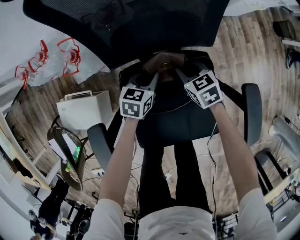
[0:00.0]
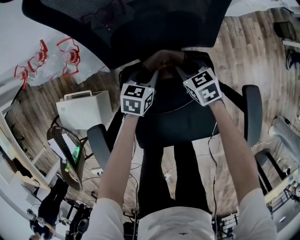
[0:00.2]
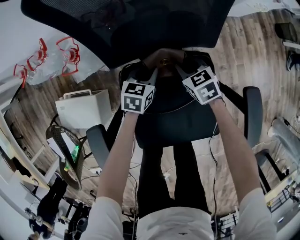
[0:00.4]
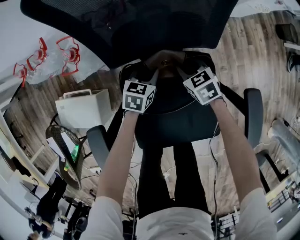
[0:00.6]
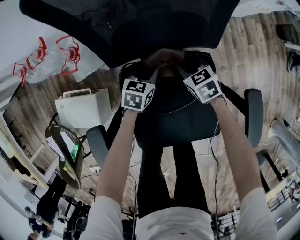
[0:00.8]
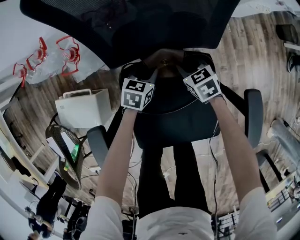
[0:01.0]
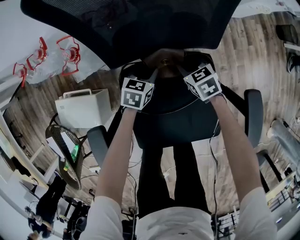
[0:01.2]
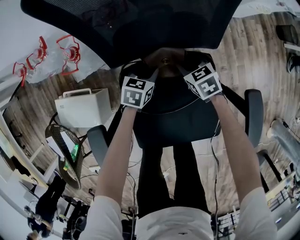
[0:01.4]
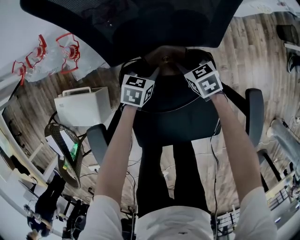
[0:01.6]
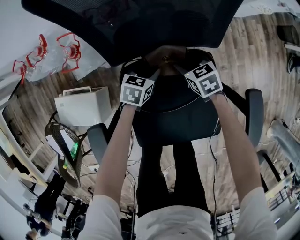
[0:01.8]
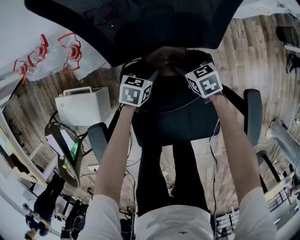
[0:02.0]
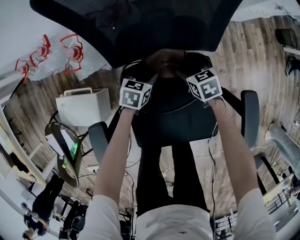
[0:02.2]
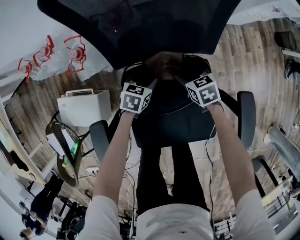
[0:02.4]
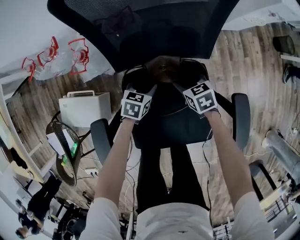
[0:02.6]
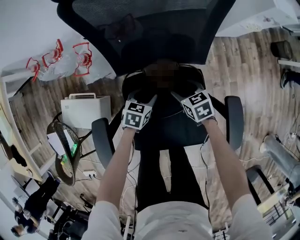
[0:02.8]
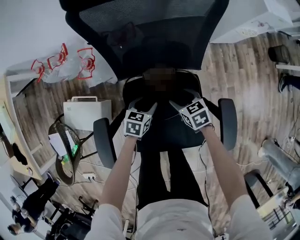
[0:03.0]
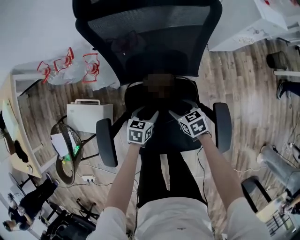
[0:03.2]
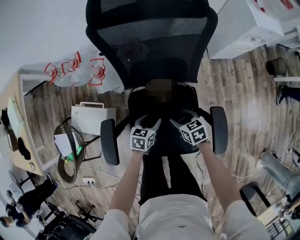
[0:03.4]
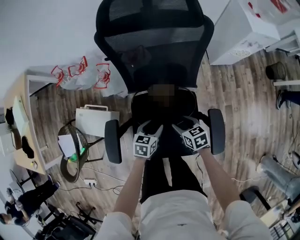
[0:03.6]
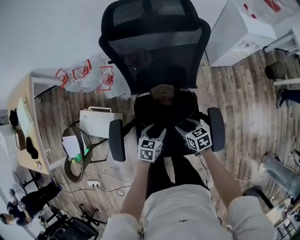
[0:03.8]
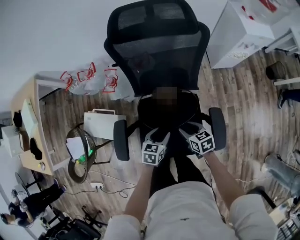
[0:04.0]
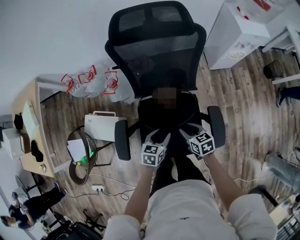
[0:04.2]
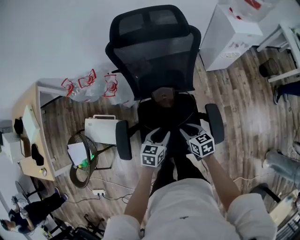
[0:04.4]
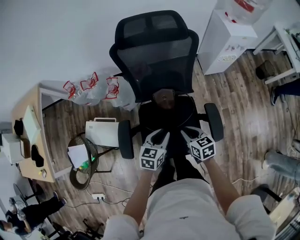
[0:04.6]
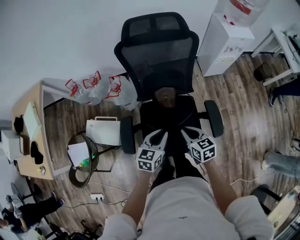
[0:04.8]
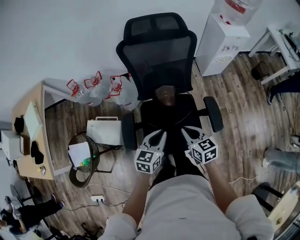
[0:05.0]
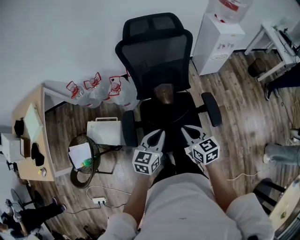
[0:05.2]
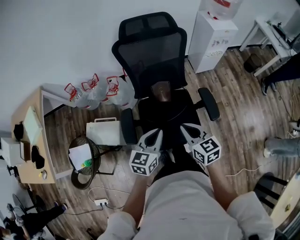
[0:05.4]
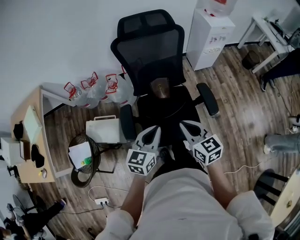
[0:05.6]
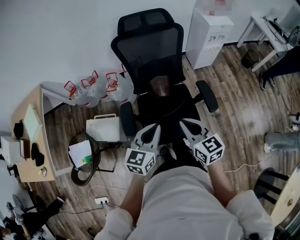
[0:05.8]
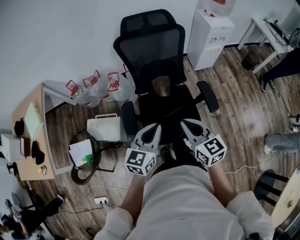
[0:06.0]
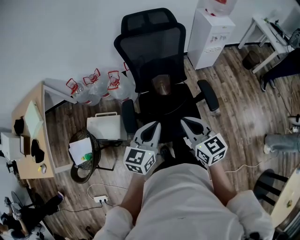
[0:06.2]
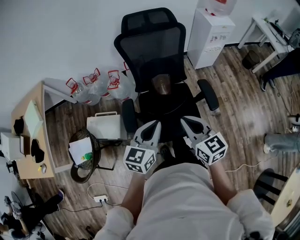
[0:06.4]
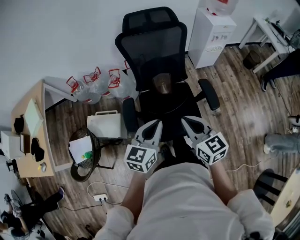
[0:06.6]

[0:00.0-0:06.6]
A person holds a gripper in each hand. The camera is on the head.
0:00.0 to 0:01.6: There are only small adjustments of the grippers.
0:01.6 to 0:03.2: The left gripper moves upward and backward, roughly 15 cm; the right gripper shifts roughly 15 cm backward and upward, and opens its fingers.
0:03.2 to 0:05.0: The grippers both shift upward and backward by approximately 30 cm. The right gripper swivels about 20 degrees, and closes. The left gripper swivels some 30 degrees, and closes up.
0:05.0 to 0:06.6: The two grippers go roughly 15 cm upward and backward.

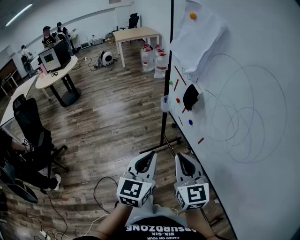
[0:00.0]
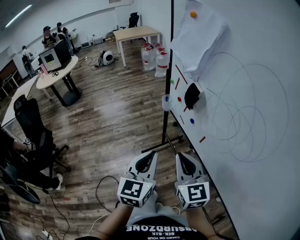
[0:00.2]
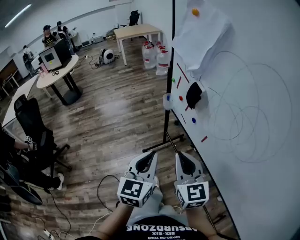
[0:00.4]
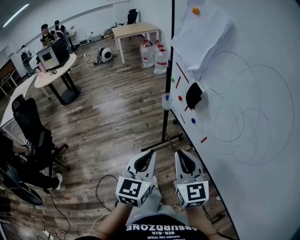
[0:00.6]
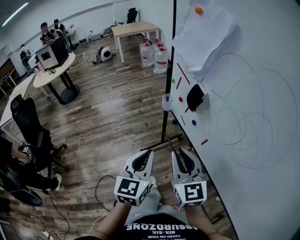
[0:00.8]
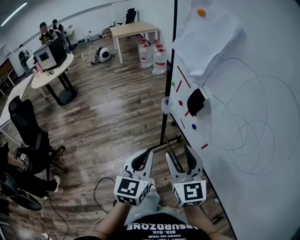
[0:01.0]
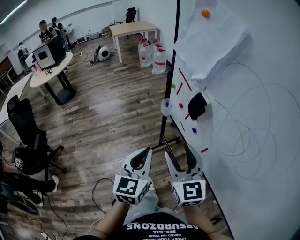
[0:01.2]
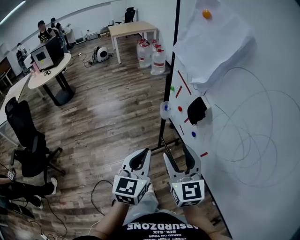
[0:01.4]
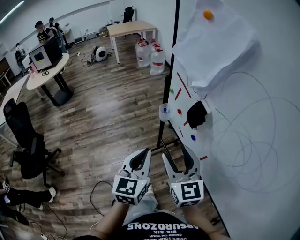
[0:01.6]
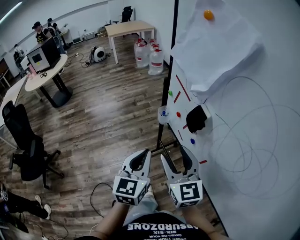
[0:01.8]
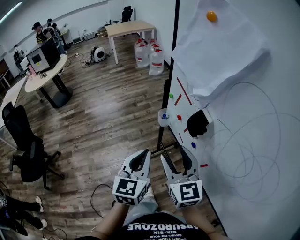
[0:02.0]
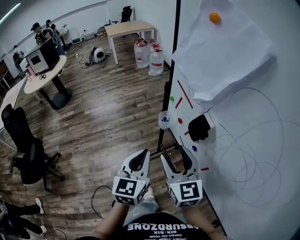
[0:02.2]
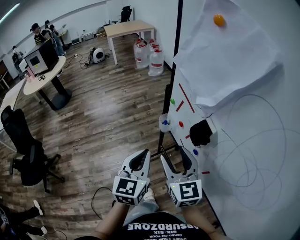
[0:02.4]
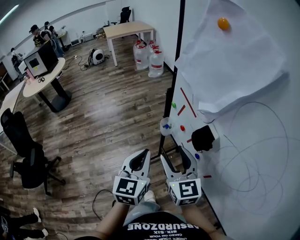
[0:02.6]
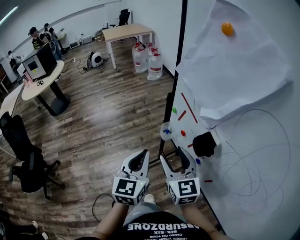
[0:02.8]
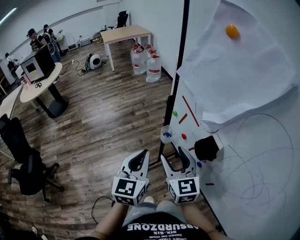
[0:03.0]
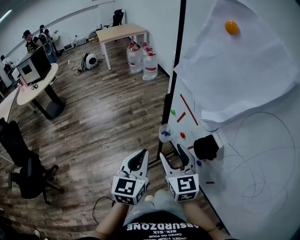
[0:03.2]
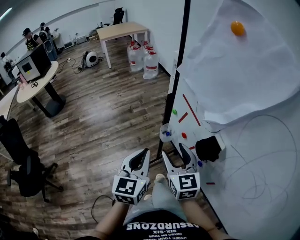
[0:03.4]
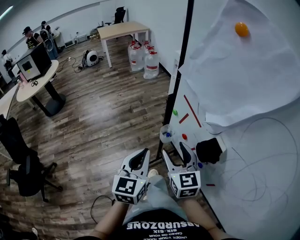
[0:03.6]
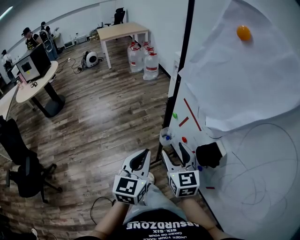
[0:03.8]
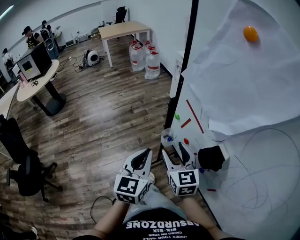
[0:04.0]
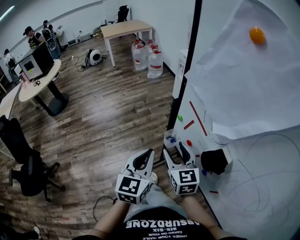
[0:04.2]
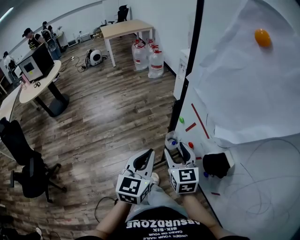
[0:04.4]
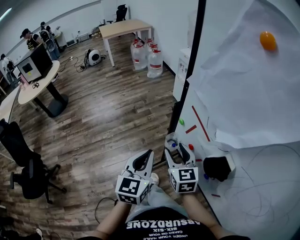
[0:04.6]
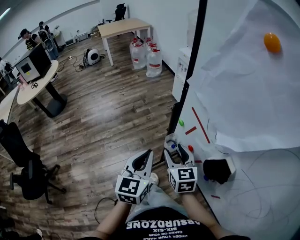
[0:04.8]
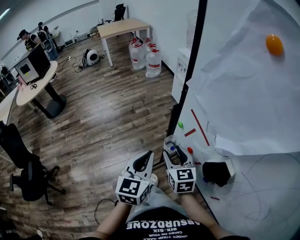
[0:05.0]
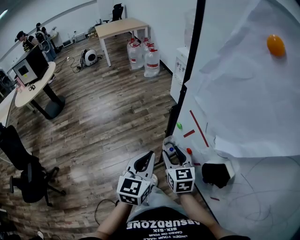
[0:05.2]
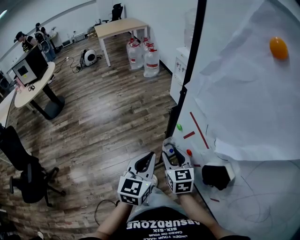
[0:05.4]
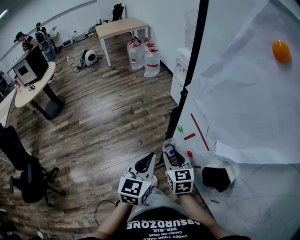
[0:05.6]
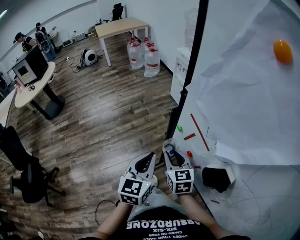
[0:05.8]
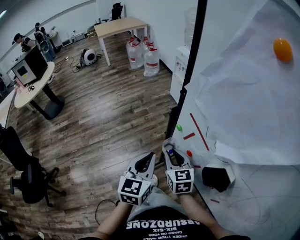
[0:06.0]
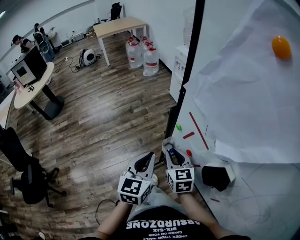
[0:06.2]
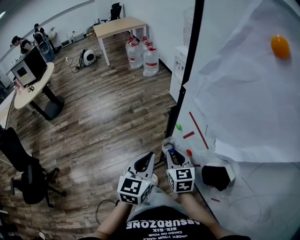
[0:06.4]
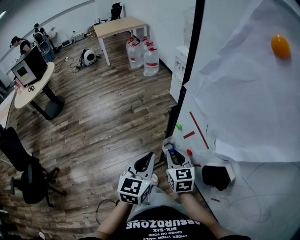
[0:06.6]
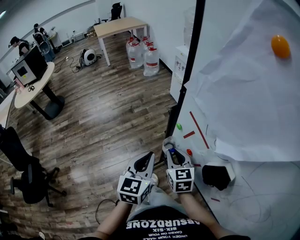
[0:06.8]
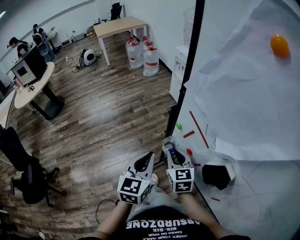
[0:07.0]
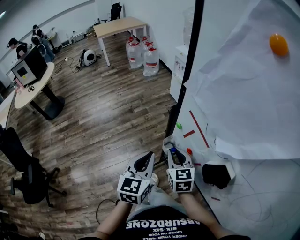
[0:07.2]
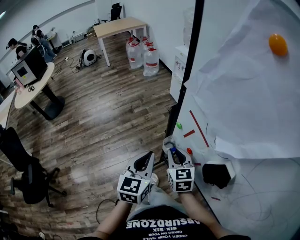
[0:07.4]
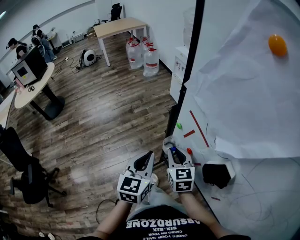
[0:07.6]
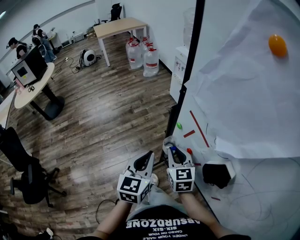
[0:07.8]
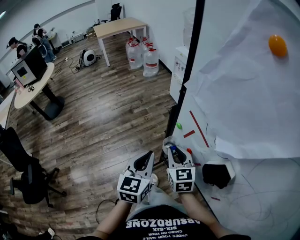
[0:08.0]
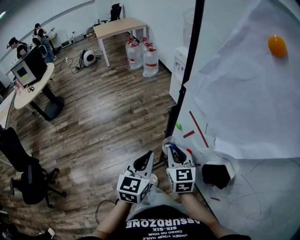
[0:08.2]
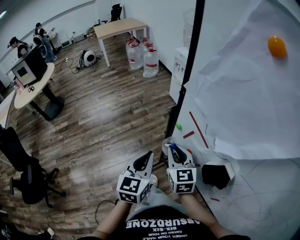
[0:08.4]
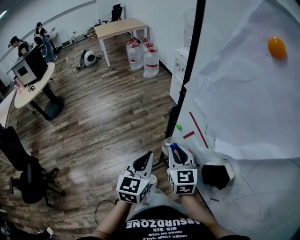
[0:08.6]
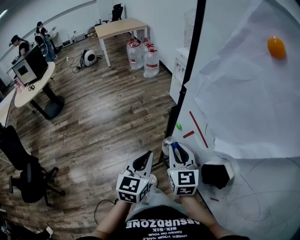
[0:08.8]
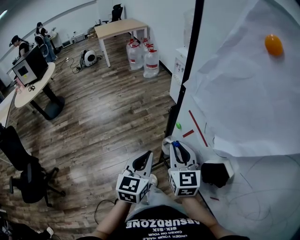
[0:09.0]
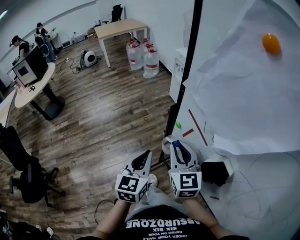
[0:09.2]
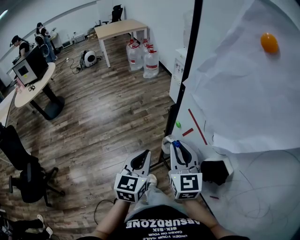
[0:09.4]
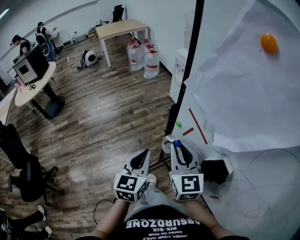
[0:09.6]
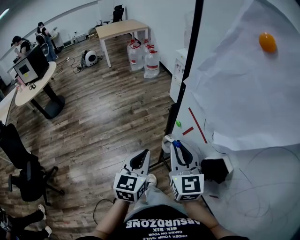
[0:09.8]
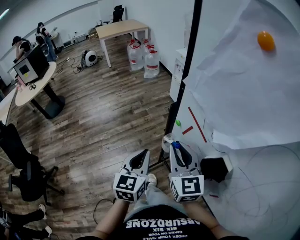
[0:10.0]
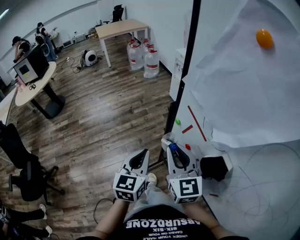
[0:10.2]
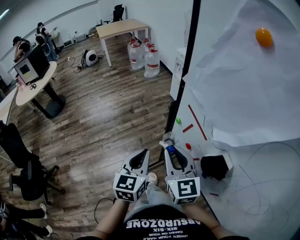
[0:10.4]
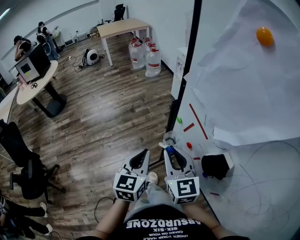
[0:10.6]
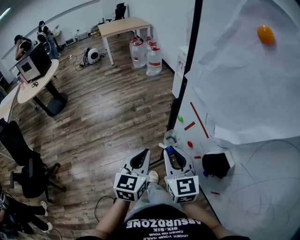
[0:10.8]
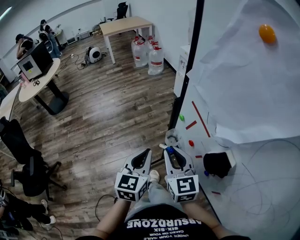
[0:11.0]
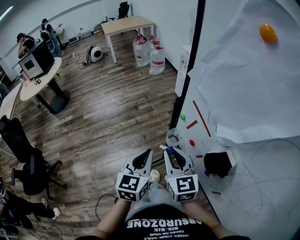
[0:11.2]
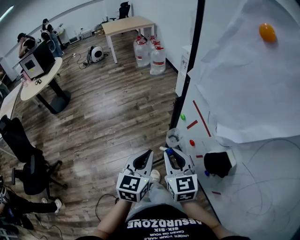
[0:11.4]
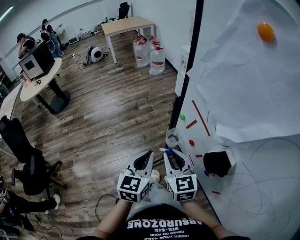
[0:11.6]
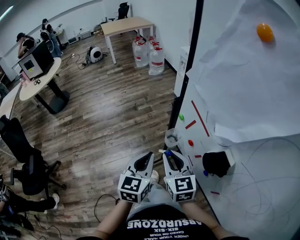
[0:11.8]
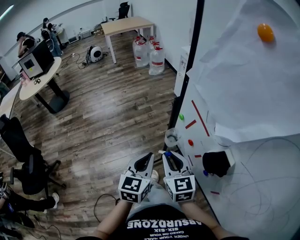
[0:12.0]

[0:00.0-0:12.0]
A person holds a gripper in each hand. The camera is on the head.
0:00.0 to 0:01.6: The grippers both shift forward by roughly 15 cm. The right gripper opens its fingers.
0:01.6 to 0:03.0: Both grippers travel together forward, approximately 15 cm.
0:03.0 to 0:04.4: The left gripper heads forward, covering about 5 cm. Meanwhile the right gripper moves forward and downward, some 10 cm.
0:04.4 to 0:06.0: The left gripper moves roughly 5 cm. Meanwhile the right gripper is displaced downward by approximately 5 cm, and closes up.
0:06.0 to 0:07.6: Both grippers stay about where they are.
0:07.6 to 0:09.0: The right gripper heads upward, covering about 10 cm.
0:09.0 to 0:10.4: The right gripper goes some 5 cm backward.
0:10.4 to 0:12.0: The right gripper travels downward by approximately 5 cm.

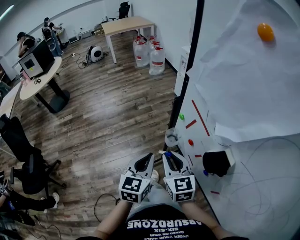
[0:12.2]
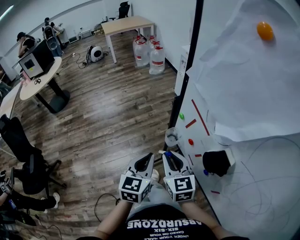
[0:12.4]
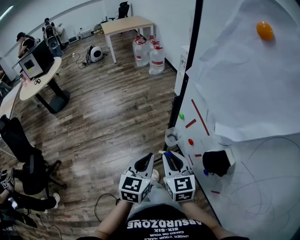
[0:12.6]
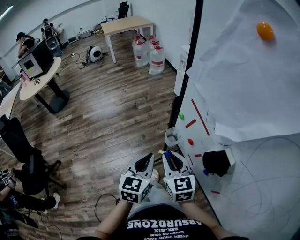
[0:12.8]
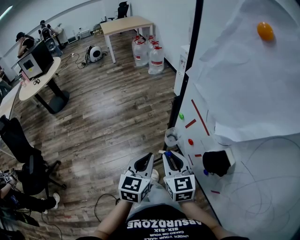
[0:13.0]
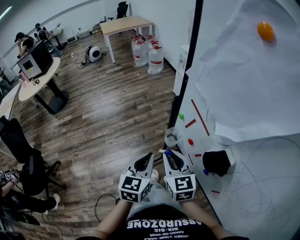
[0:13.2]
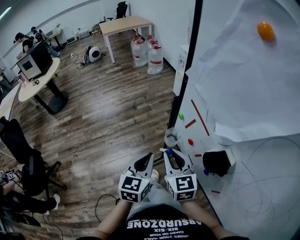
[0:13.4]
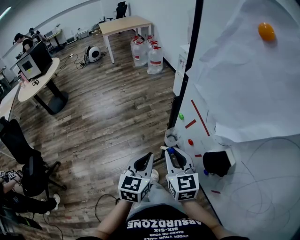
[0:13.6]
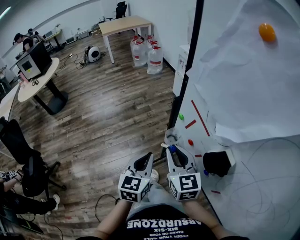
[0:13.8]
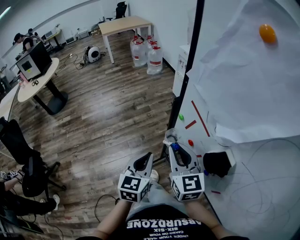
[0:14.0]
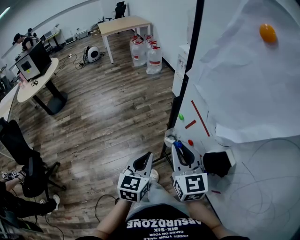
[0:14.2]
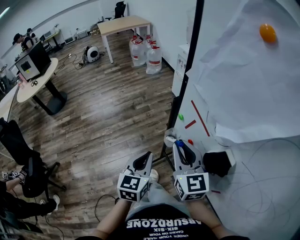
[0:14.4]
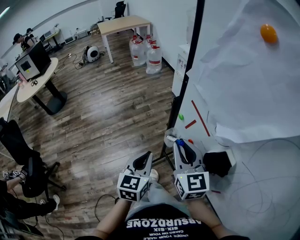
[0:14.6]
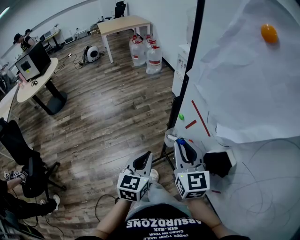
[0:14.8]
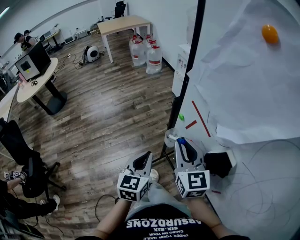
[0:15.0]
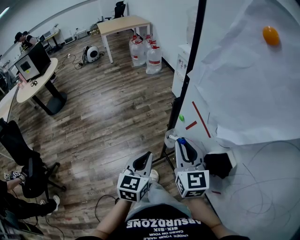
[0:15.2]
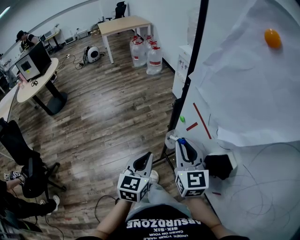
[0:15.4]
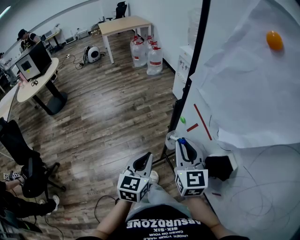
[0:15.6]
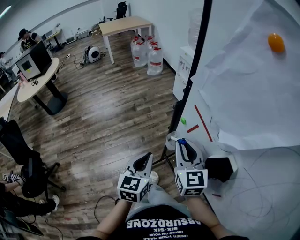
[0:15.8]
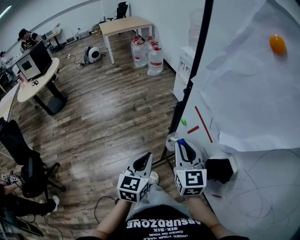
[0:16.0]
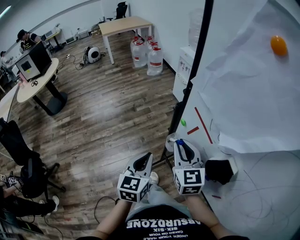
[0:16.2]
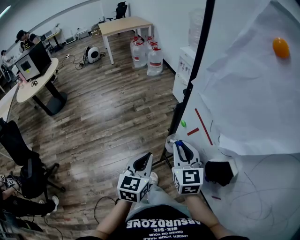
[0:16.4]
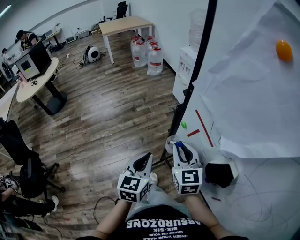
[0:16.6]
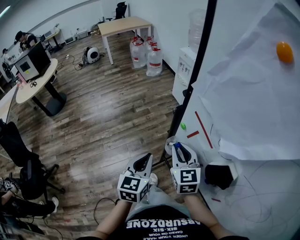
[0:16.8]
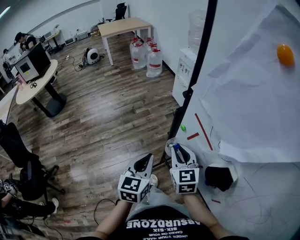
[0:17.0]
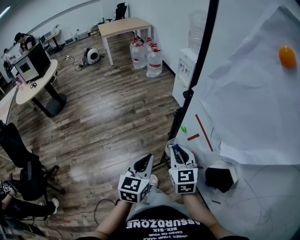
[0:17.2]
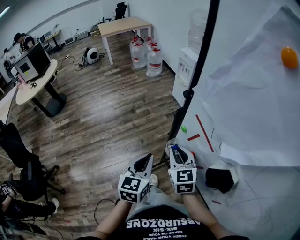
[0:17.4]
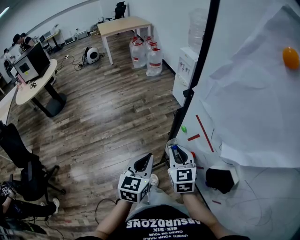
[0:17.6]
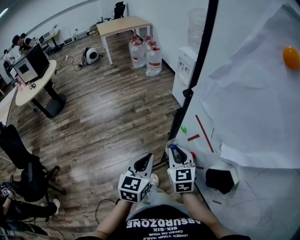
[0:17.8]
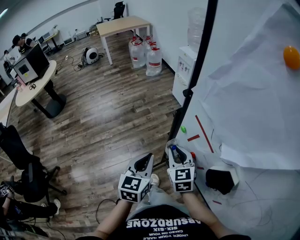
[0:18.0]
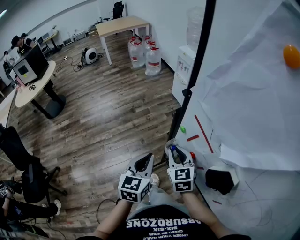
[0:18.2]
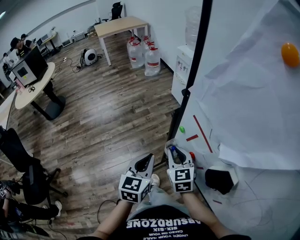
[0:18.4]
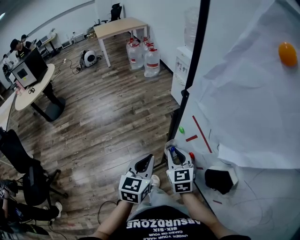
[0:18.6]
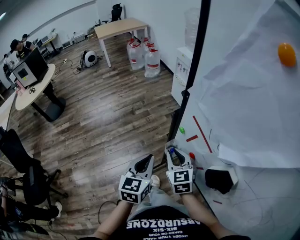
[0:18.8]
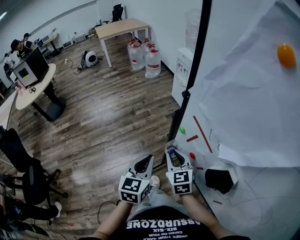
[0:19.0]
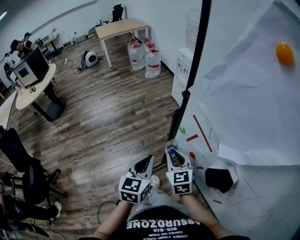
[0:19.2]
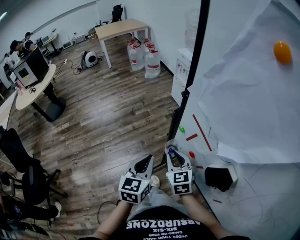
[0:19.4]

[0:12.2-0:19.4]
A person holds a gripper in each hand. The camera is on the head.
0:12.2 to 0:13.6: The grippers stay close to where they were, moving slightly.
0:13.6 to 0:15.0: The right gripper shifts roughly 5 cm upward.
0:15.0 to 0:16.6: The right gripper moves downward, approximately 5 cm.
0:16.6 to 0:18.0: The right gripper travels downward by approximately 5 cm.
0:18.0 to 0:19.4: There are only small adjustments of the grippers.
